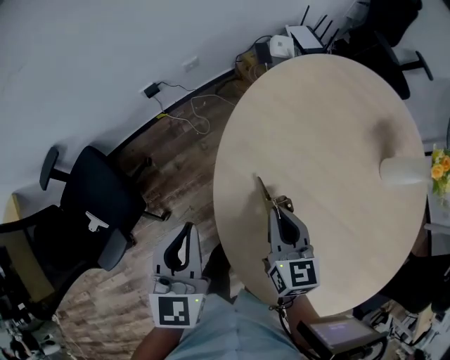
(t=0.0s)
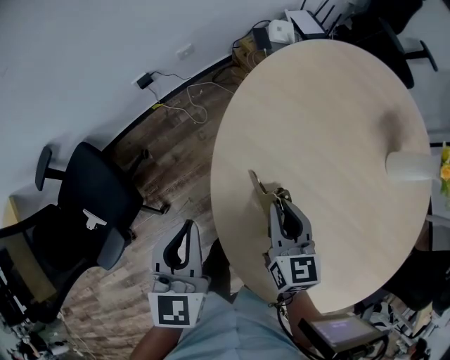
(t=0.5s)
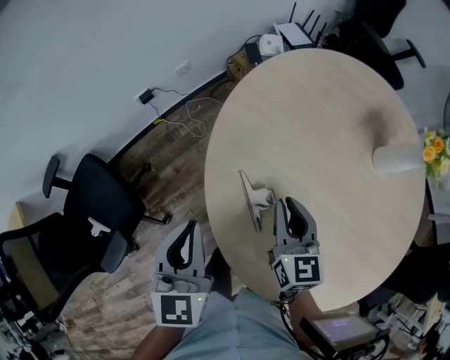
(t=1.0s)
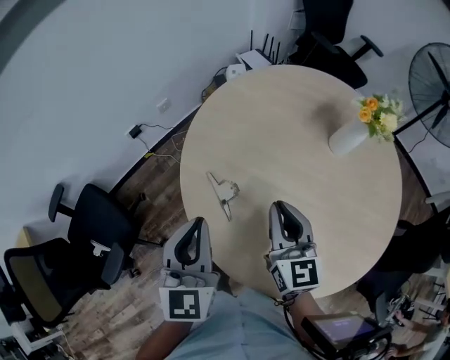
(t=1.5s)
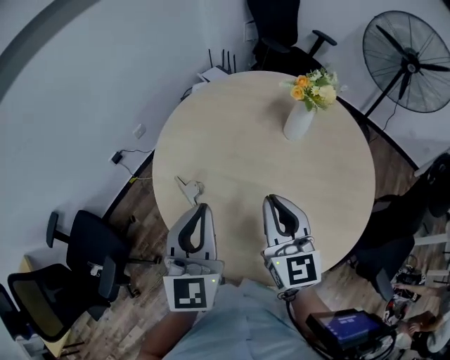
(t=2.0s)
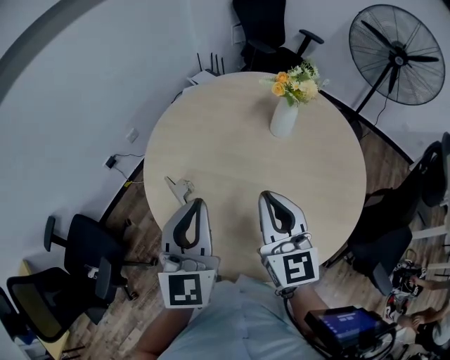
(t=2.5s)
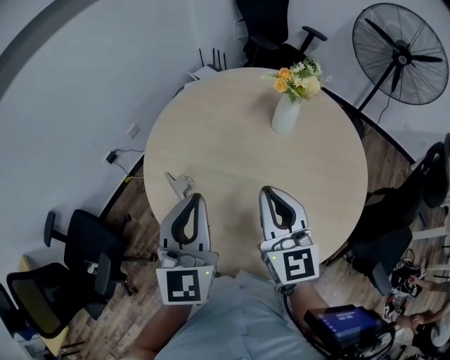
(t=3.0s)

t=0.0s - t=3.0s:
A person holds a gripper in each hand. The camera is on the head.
t=0.0s - t=1.5s: The left gripper heads to the right, covering some 20 cm. The right gripper shifts about 20 cm to the right, upward and backward, and swivels roughly 20 degrees.
t=1.5s - t=3.0s: The left gripper travels to the right by approximately 20 cm. Meanwhile the right gripper is displaced to the right, backward and upward by about 20 cm.

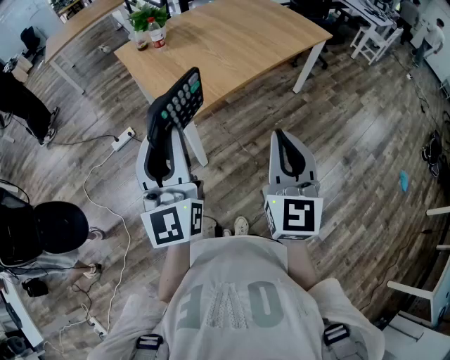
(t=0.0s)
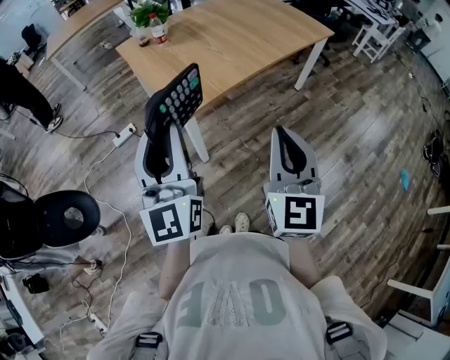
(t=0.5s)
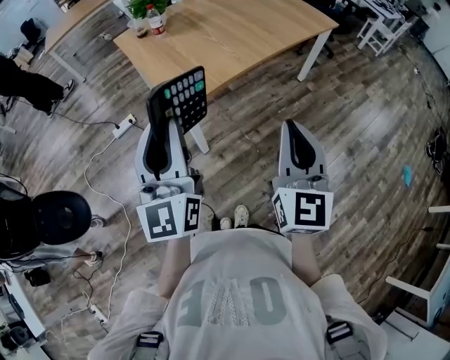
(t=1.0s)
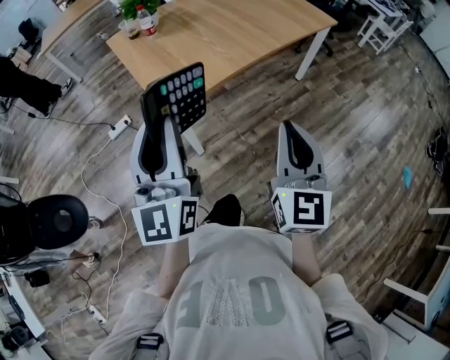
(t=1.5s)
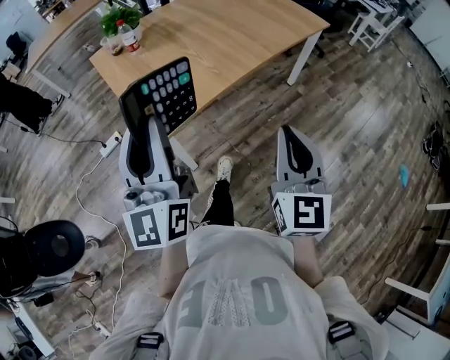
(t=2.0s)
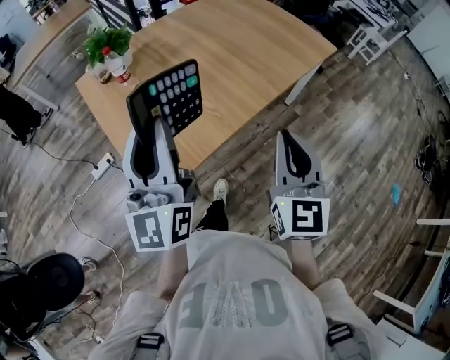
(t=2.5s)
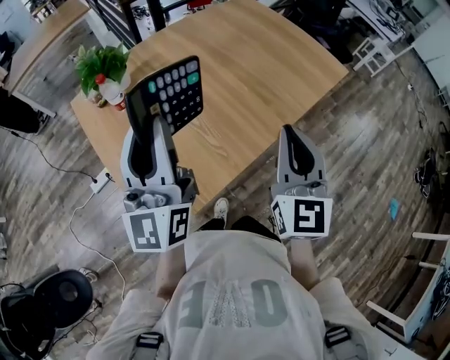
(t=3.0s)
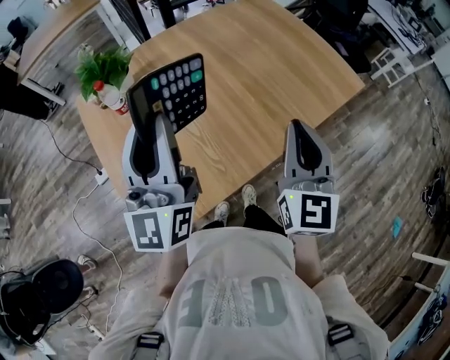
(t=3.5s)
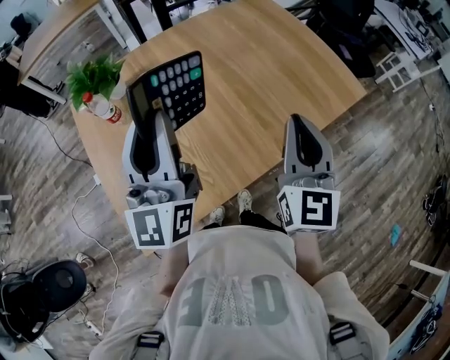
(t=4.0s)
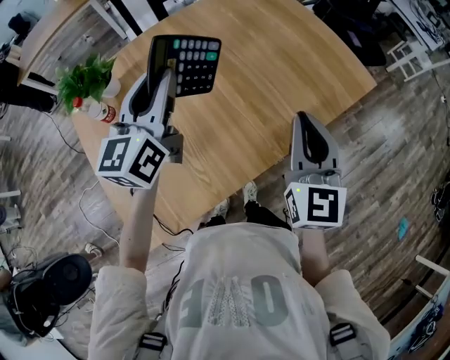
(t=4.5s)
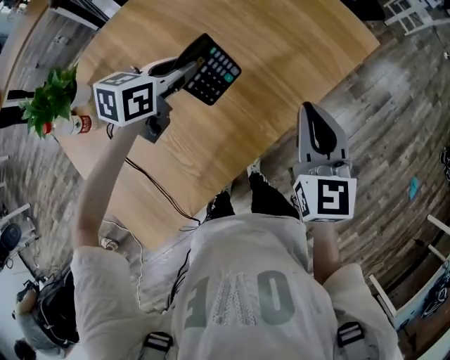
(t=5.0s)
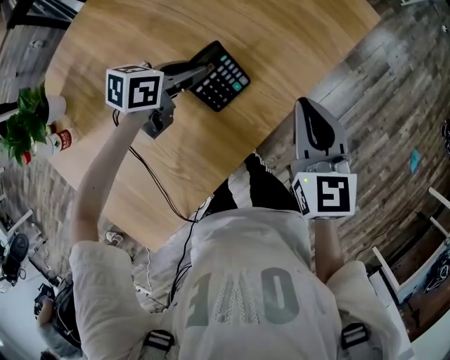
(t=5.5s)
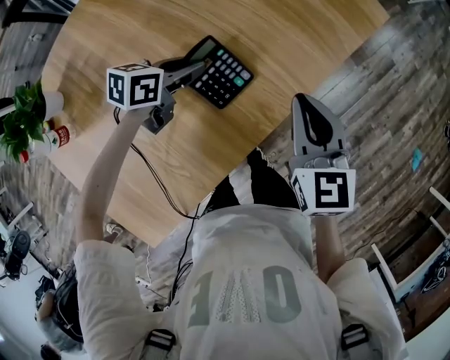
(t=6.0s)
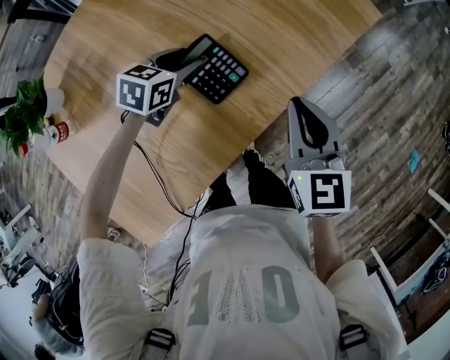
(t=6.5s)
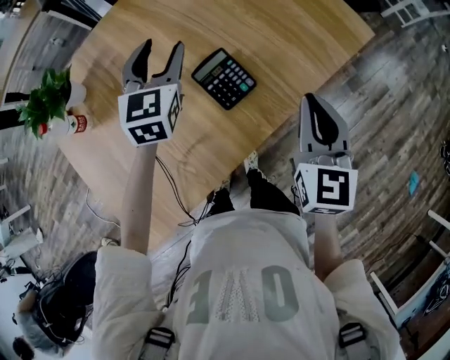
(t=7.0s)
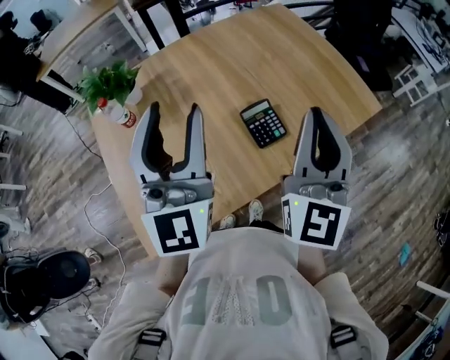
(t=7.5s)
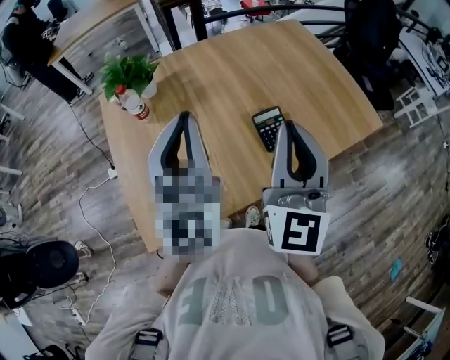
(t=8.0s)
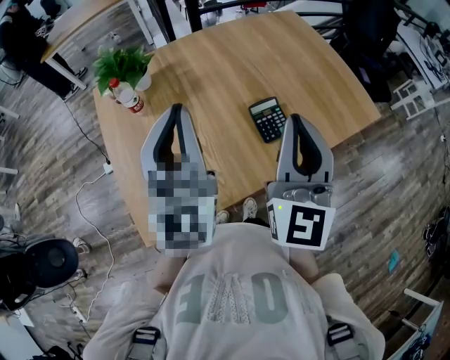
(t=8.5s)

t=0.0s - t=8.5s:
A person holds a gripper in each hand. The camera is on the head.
t=0.0s - t=2.0s: The grippers both shift forward and to the right by approximately 15 cm.
t=2.0s - t=4.0s: The pair of grippers is taken forward, about 50 cm.
t=4.0s - t=6.5s: The right gripper goes roughly 15 cm downward, and swivels some 30 degrees; the left gripper moves downward, roughly 35 cm, angles its fingers downward, by roughly 60 degrees, and opens up.
t=6.5s - t=8.5s: The right gripper heads upward, covering approximately 25 cm, and angles its fingers upward, by approximately 30 degrees, while the left gripper is displaced upward by about 40 cm, angles its fingers upward, by approximately 60 degrees, and closes.

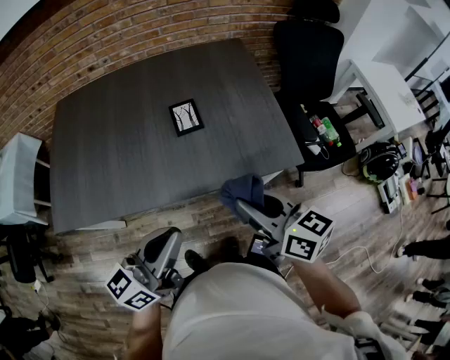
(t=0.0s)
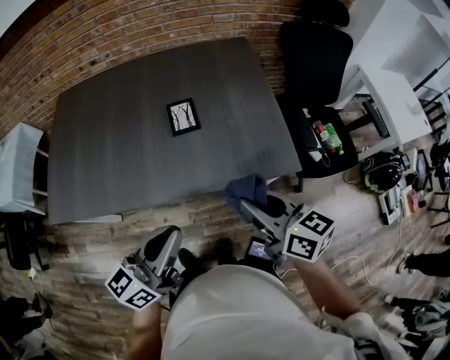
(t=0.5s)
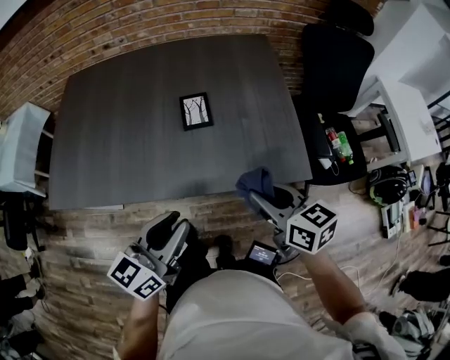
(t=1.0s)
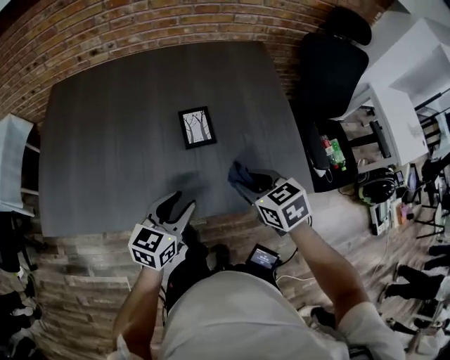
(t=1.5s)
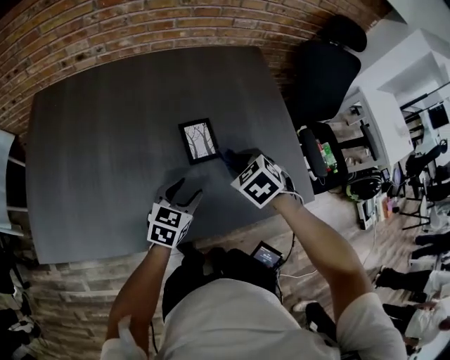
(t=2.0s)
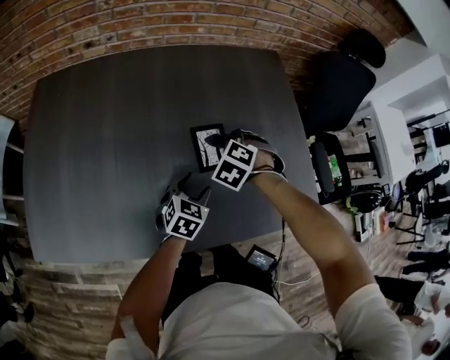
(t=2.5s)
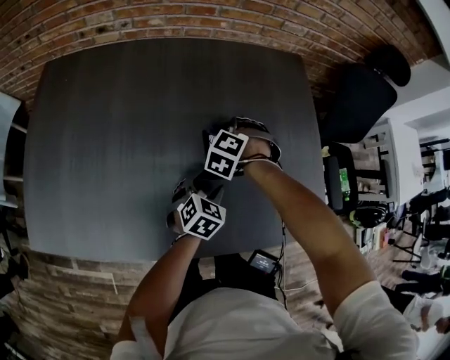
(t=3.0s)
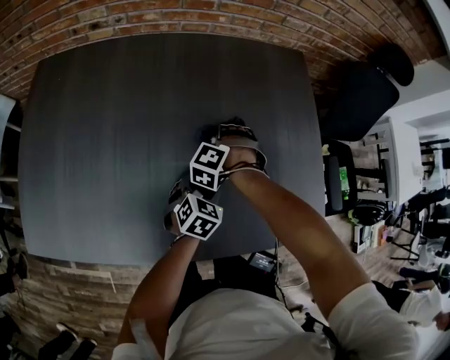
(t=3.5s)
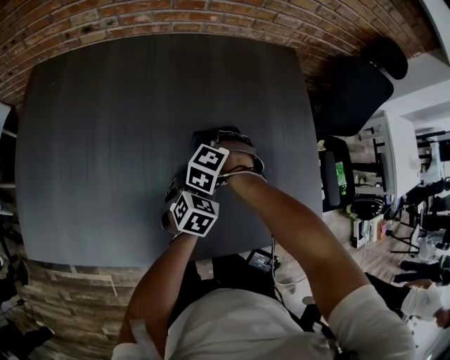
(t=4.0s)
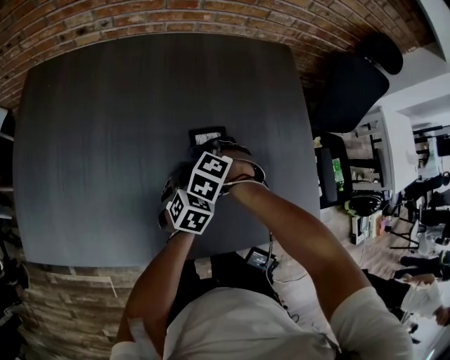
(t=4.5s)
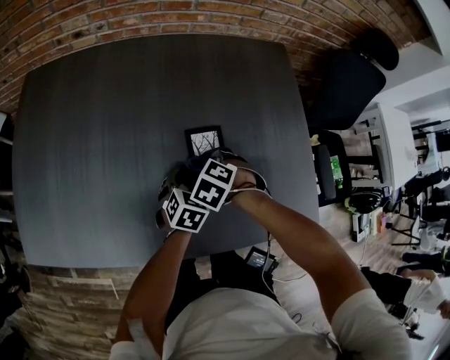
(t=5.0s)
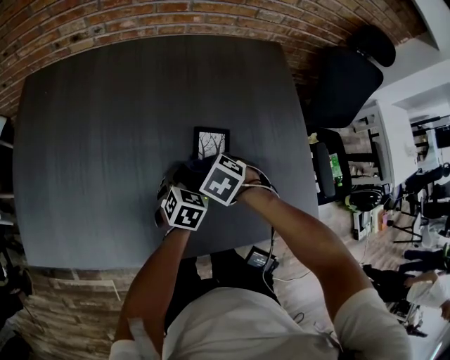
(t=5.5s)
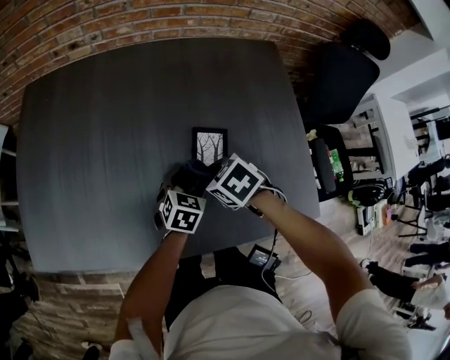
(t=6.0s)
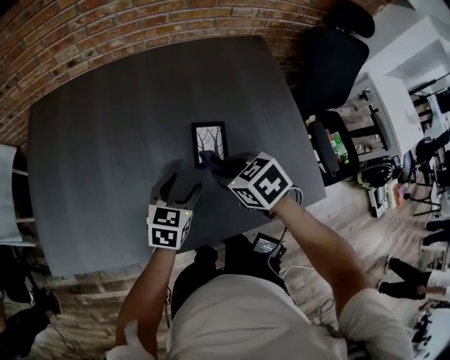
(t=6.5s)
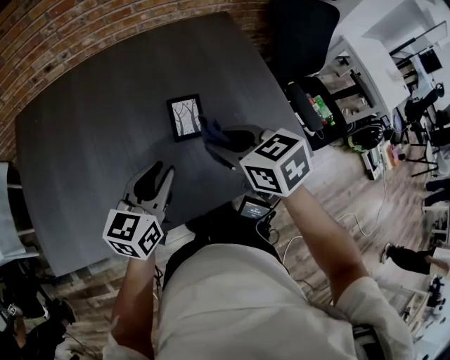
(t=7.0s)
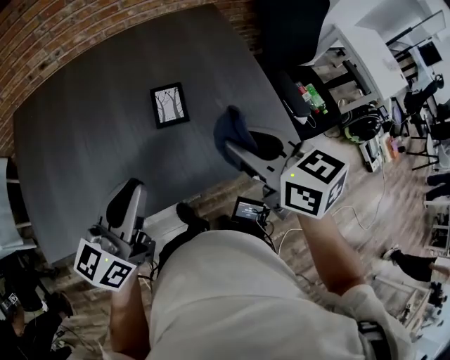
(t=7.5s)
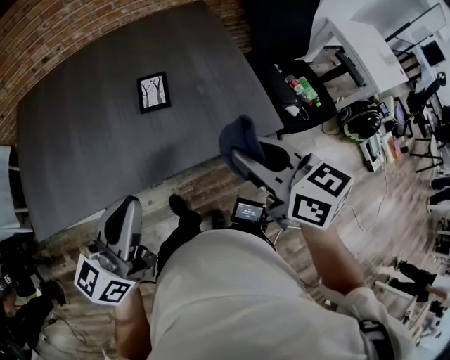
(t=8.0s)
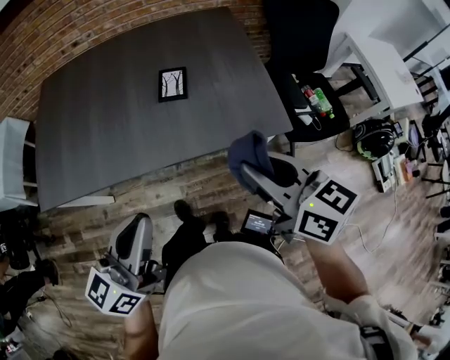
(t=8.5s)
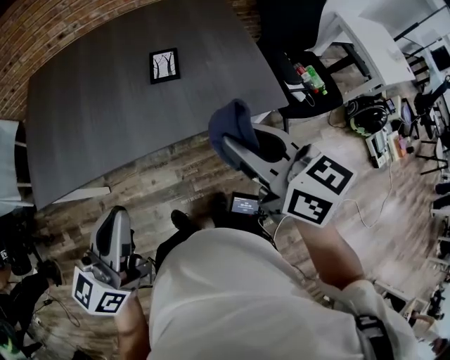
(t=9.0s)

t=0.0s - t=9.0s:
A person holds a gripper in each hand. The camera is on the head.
t=0.0s - t=2.0s: Both grippers travel together forward and downward, some 35 cm. The right gripper points its fingers some 50 degrees further downward. The left gripper tips its fingers downward by approximately 40 degrees, and opens.
t=2.0s - t=4.5s: The left gripper is displaced forward and downward by about 10 cm; the right gripper goes about 15 cm downward, to the left and forward, and changes its angle by about 30 degrees.
t=4.5s - t=7.0s: Both grippers move upward, some 20 cm. The left gripper tips its fingers upward by approximately 30 degrees, and closes up, while the right gripper points its fingers roughly 30 degrees further upward.
t=7.0s - t=9.0s: The two grippers go roughly 30 cm backward and upward. The right gripper changes its angle by about 30 degrees. The left gripper swivels approximately 20 degrees, and closes.

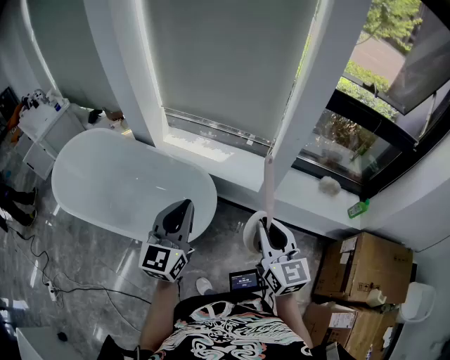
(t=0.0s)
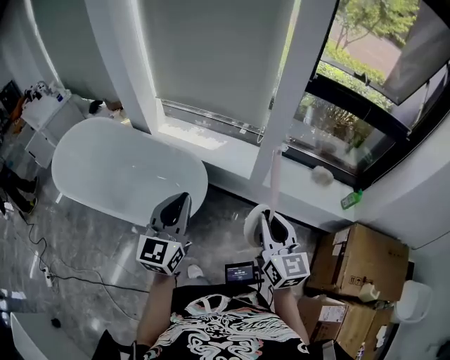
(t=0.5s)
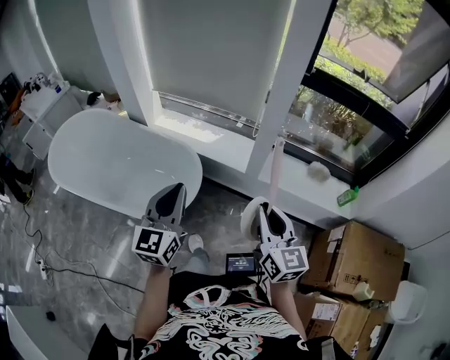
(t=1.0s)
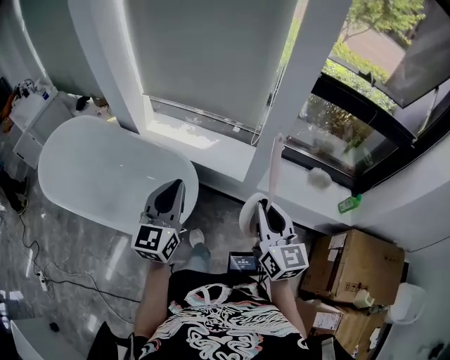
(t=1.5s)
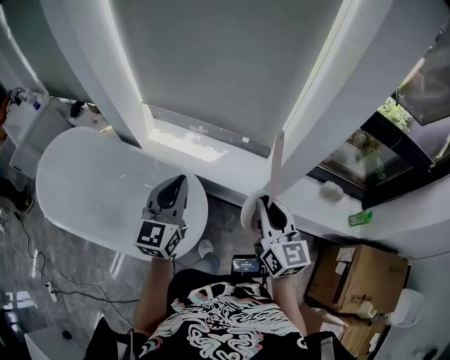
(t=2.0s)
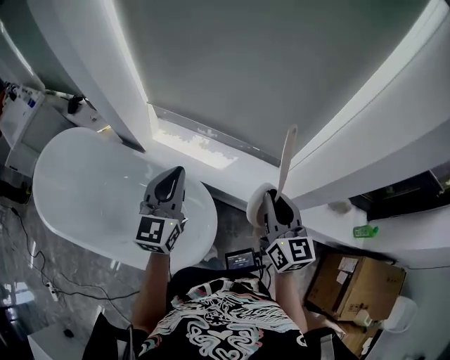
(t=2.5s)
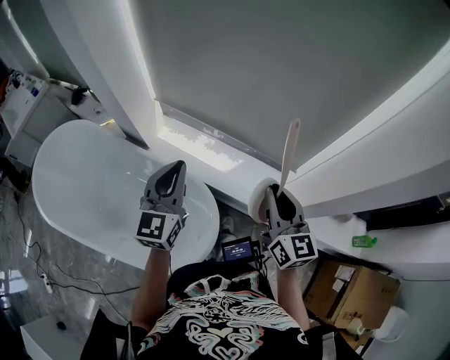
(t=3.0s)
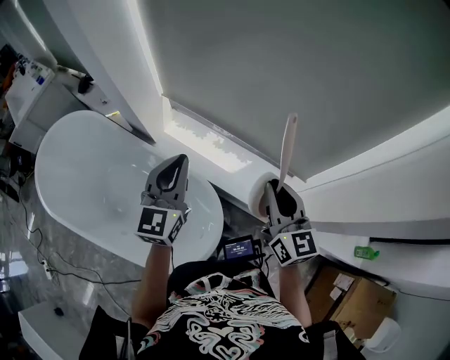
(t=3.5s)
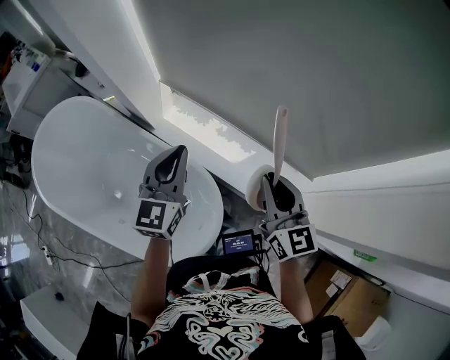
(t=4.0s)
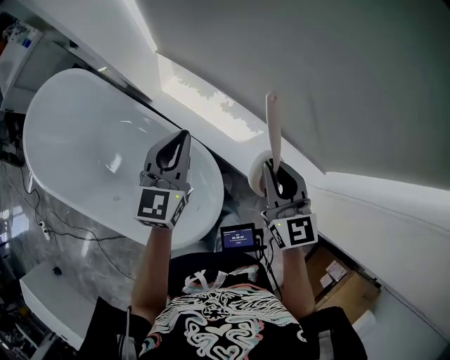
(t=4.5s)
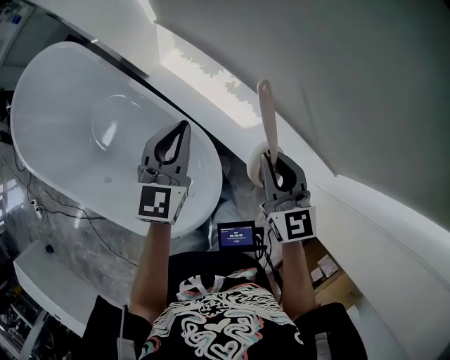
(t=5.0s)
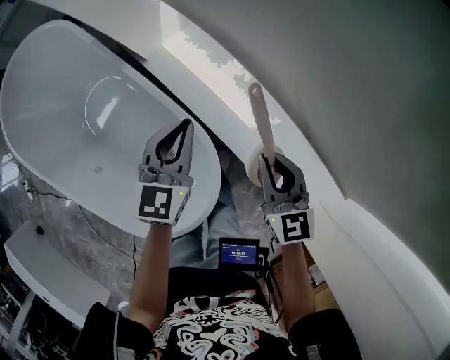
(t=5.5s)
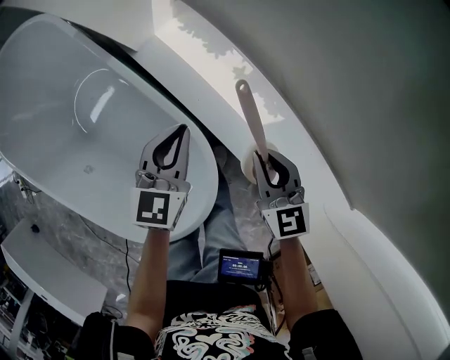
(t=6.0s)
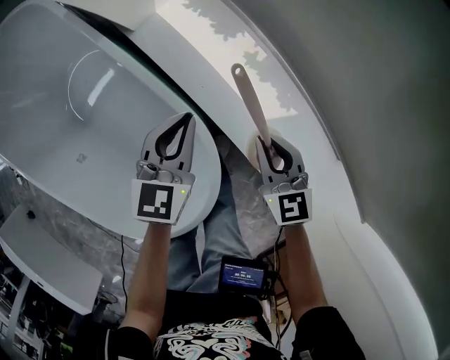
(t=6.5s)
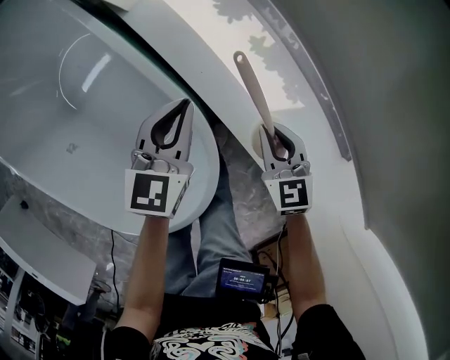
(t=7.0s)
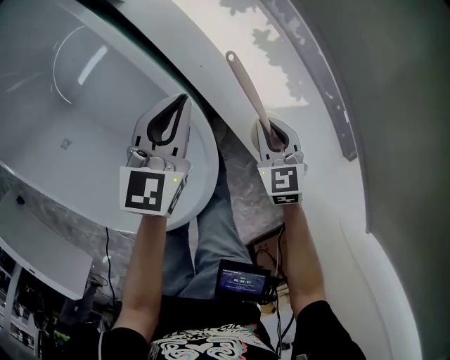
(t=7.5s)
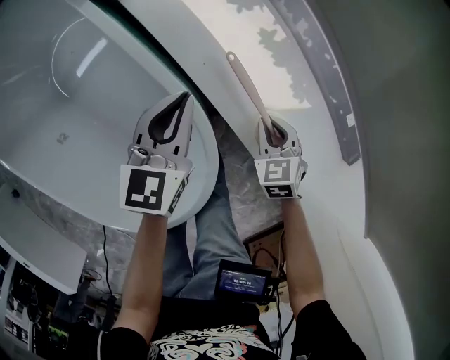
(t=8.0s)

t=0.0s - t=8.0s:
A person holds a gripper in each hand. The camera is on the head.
t=0.0s - t=2.0s: The two grippers go roughly 25 cm forward.
t=2.0s - t=4.0s: The right gripper shifts about 30 cm forward, while the left gripper heads forward and to the left, covering approximately 30 cm.
t=4.0s - t=6.0s: The grippers both shift downward by approximately 35 cm. The right gripper changes its angle by some 20 degrees. The left gripper changes its angle by roughly 20 degrees.
t=6.0s - t=8.0s: The right gripper is displaced downward by roughly 25 cm, and angles its fingers downward, by roughly 30 degrees; the left gripper shifts some 15 cm downward.
